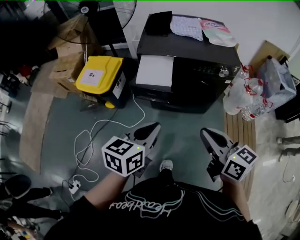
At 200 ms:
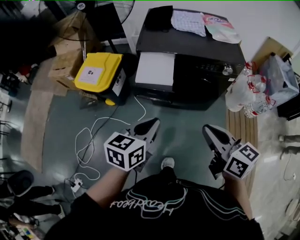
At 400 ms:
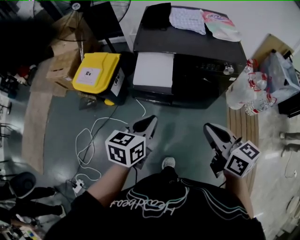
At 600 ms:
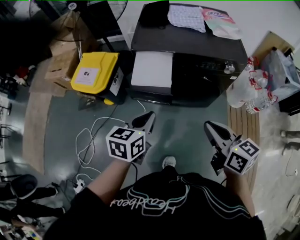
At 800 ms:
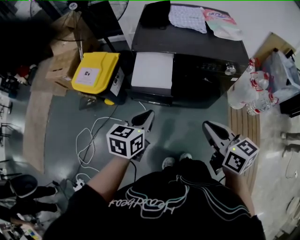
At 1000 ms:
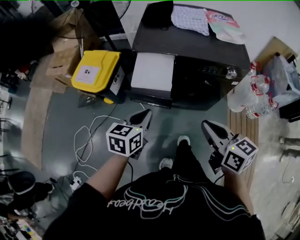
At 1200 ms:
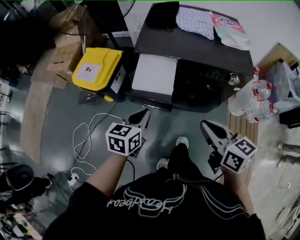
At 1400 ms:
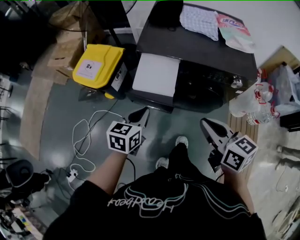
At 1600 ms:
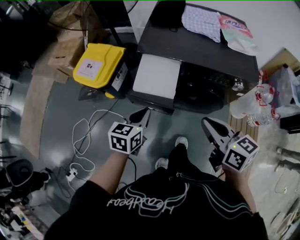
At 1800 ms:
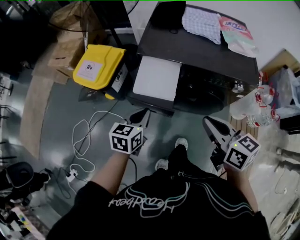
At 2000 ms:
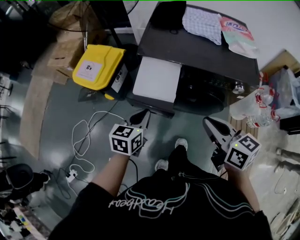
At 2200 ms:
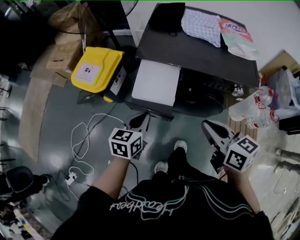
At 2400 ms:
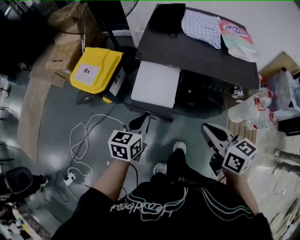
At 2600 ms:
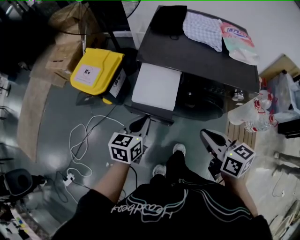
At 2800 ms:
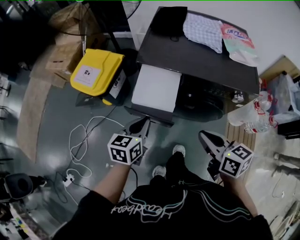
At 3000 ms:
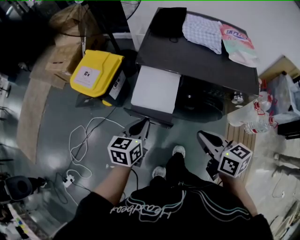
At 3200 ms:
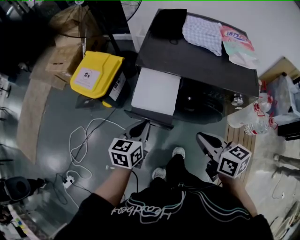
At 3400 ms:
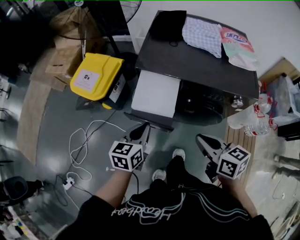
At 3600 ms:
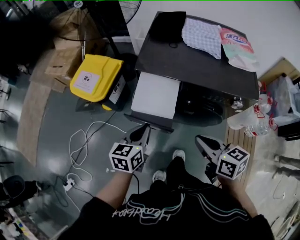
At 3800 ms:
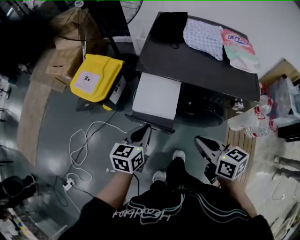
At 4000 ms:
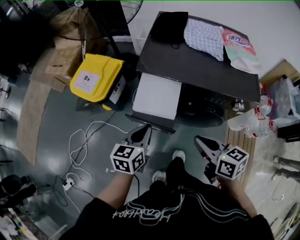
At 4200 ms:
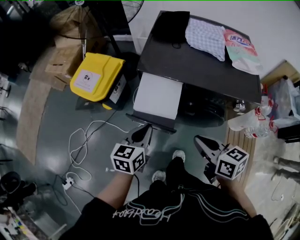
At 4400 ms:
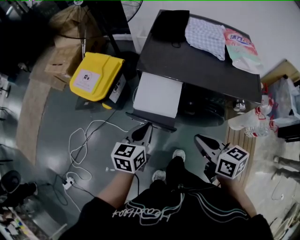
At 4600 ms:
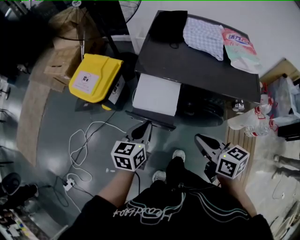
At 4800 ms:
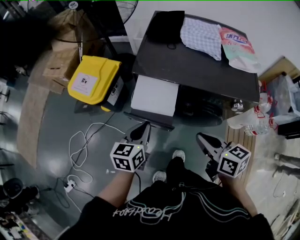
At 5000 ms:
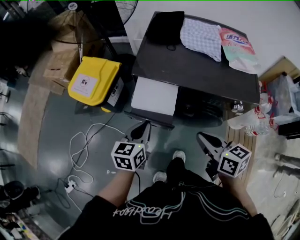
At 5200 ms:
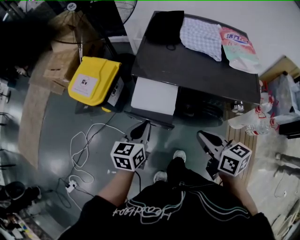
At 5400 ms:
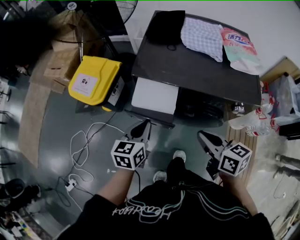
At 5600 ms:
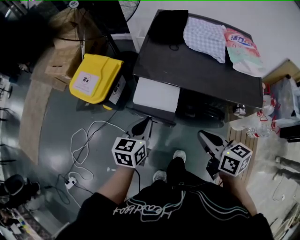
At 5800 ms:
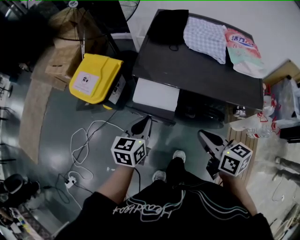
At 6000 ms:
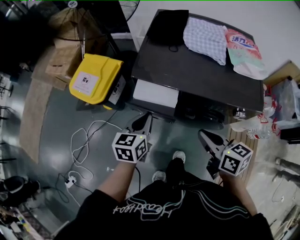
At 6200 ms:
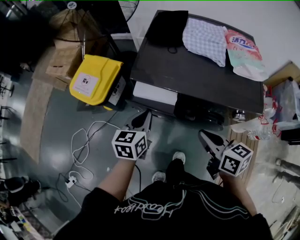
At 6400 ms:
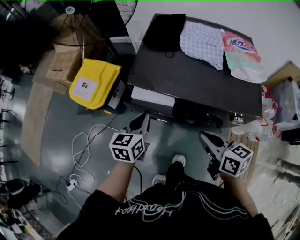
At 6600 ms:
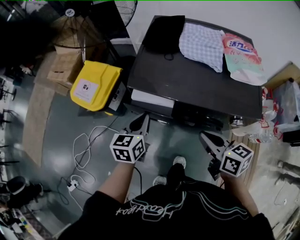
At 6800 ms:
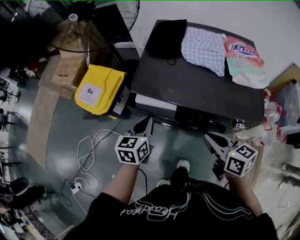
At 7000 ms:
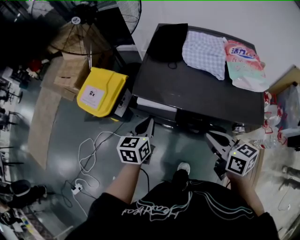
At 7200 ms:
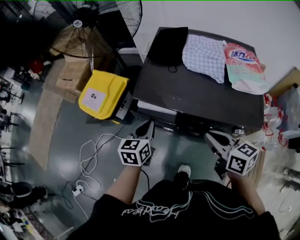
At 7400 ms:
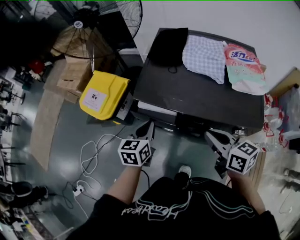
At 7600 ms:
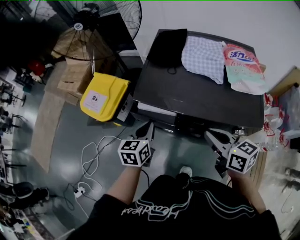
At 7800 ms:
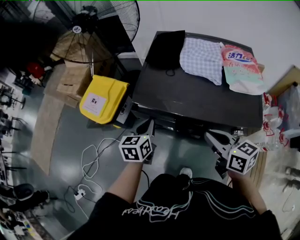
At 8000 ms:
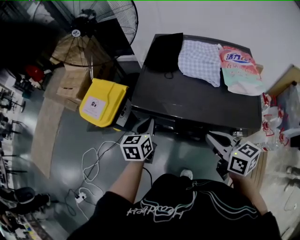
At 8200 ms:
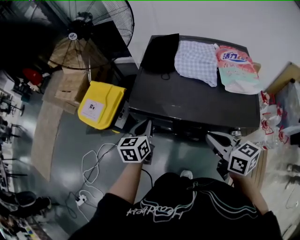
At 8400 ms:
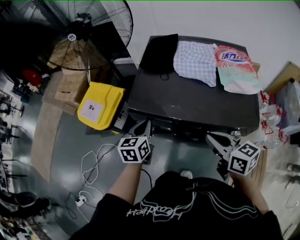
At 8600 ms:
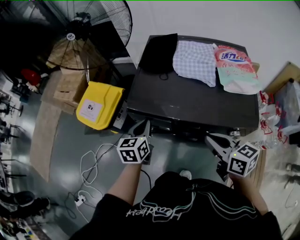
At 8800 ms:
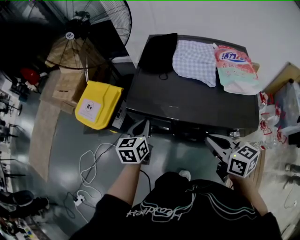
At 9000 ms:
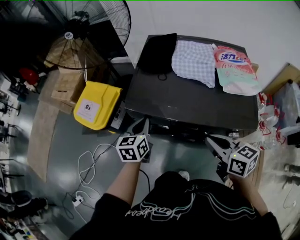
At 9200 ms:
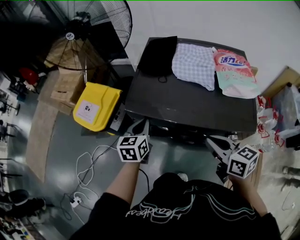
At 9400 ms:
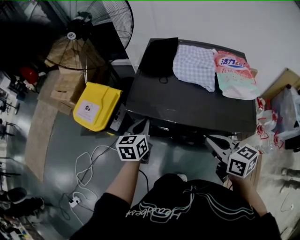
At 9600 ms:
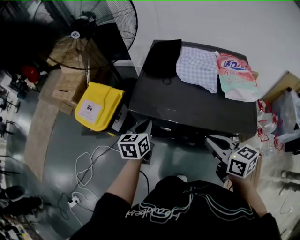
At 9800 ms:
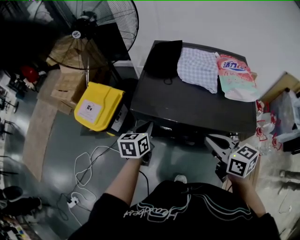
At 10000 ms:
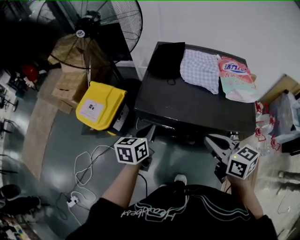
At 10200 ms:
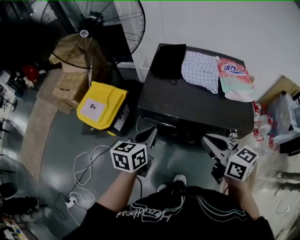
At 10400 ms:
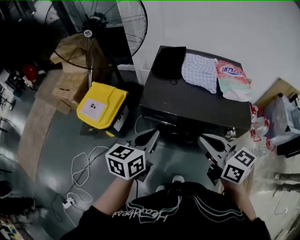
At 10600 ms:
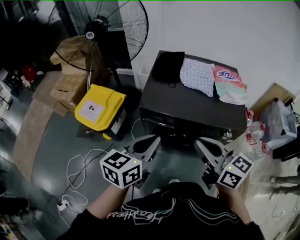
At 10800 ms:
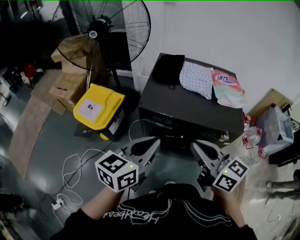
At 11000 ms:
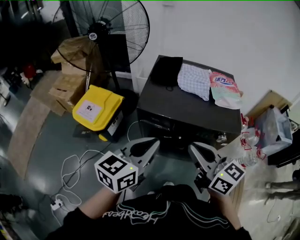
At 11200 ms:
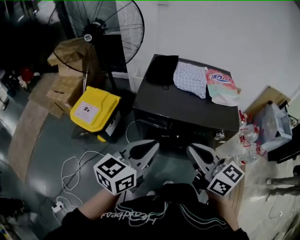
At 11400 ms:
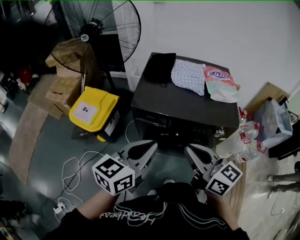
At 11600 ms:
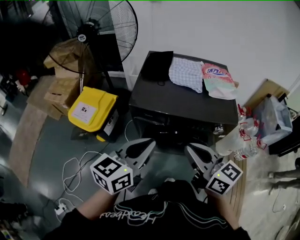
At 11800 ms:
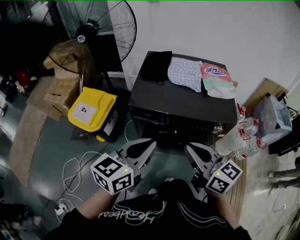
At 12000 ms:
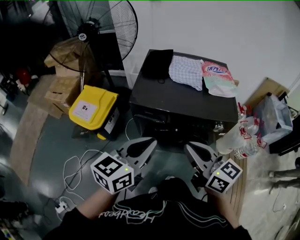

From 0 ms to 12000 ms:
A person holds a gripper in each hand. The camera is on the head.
From 0 ms to 1600 ms: The right gripper moves forward, about 15 cm, while the left gripper travels forward and downward by about 20 cm.
From 1600 ms to 3000 ms: The grippers stay close to where they were, moving slightly.
From 3000 ms to 4400 ms: The grippers make only small movements.
From 4400 ms to 6000 ms: Both grippers move forward, some 5 cm.
From 6000 ms to 7600 ms: The left gripper moves some 5 cm. The right gripper shifts roughly 10 cm forward and to the right.
From 7600 ms to 9000 ms: The left gripper moves approximately 5 cm.
From 9000 ms to 10400 ms: The right gripper shifts some 15 cm upward and to the left. Meanwhile the left gripper moves upward and backward, roughly 20 cm, and rotates about 20 degrees.
From 10400 ms to 12000 ms: The right gripper moves backward, approximately 5 cm; the left gripper travels backward and upward by about 10 cm.

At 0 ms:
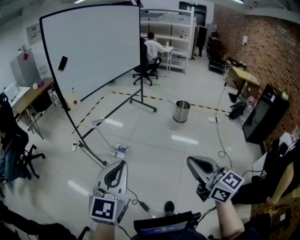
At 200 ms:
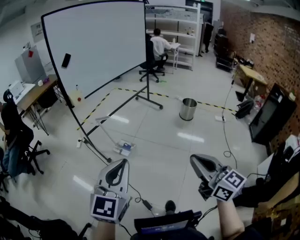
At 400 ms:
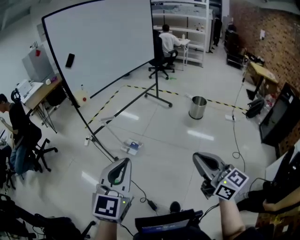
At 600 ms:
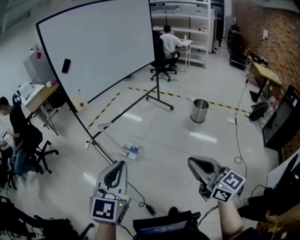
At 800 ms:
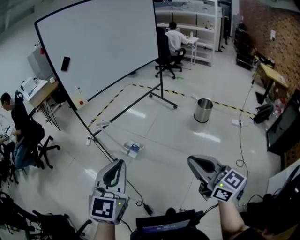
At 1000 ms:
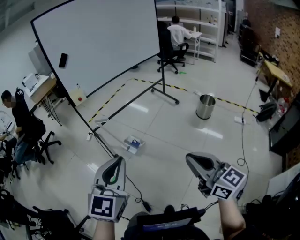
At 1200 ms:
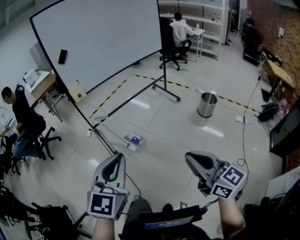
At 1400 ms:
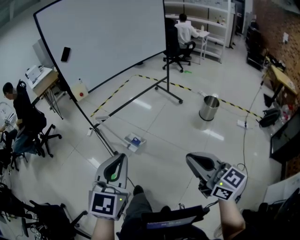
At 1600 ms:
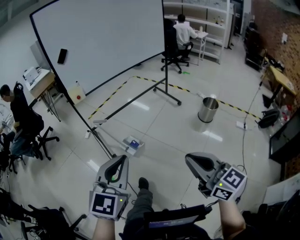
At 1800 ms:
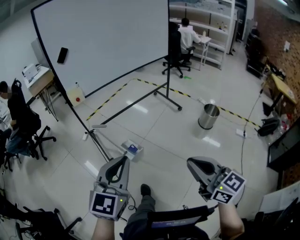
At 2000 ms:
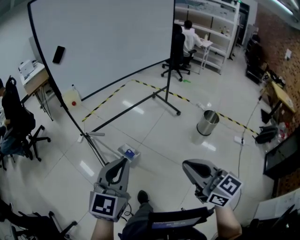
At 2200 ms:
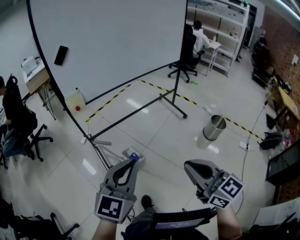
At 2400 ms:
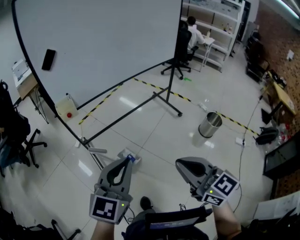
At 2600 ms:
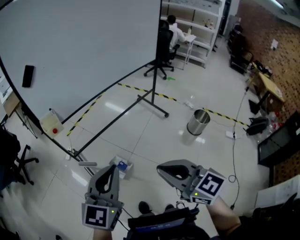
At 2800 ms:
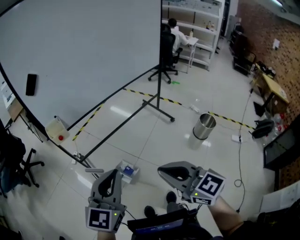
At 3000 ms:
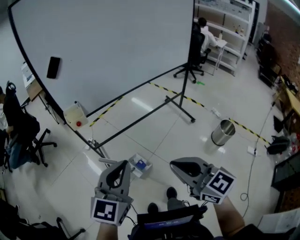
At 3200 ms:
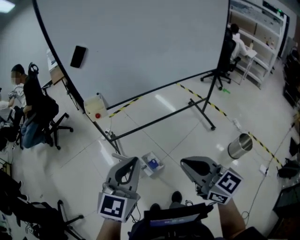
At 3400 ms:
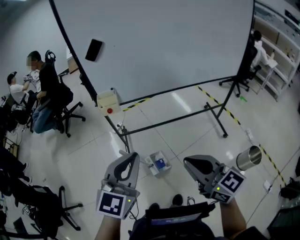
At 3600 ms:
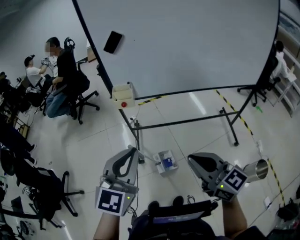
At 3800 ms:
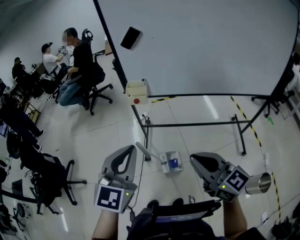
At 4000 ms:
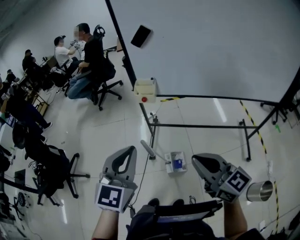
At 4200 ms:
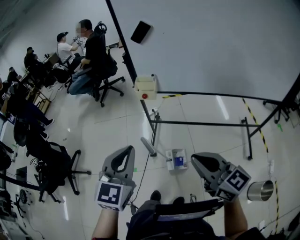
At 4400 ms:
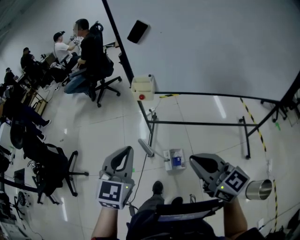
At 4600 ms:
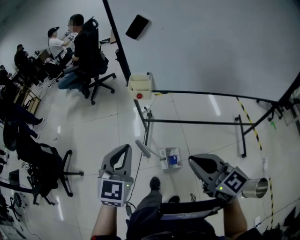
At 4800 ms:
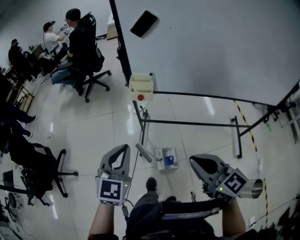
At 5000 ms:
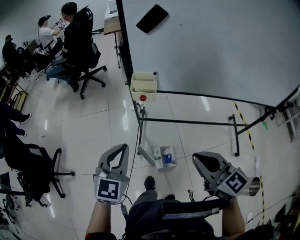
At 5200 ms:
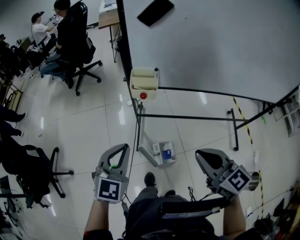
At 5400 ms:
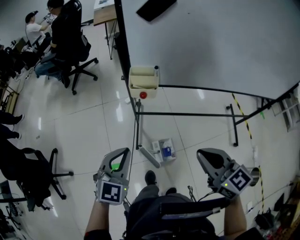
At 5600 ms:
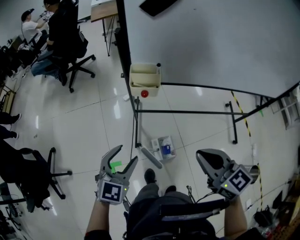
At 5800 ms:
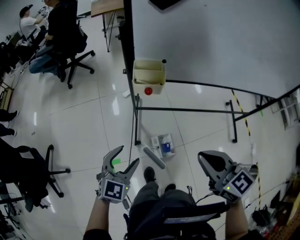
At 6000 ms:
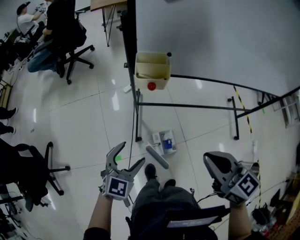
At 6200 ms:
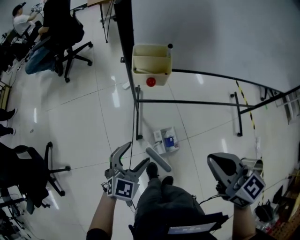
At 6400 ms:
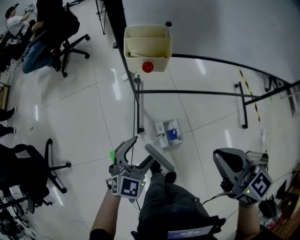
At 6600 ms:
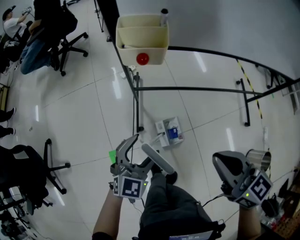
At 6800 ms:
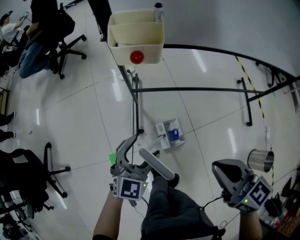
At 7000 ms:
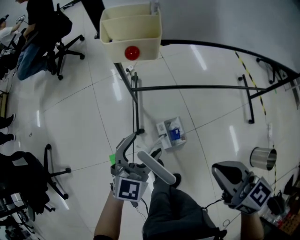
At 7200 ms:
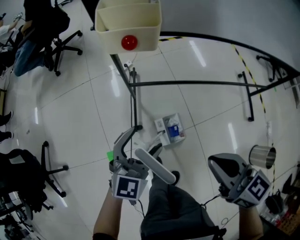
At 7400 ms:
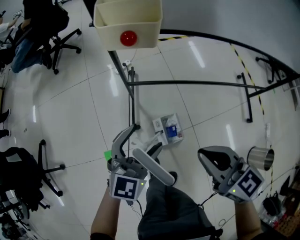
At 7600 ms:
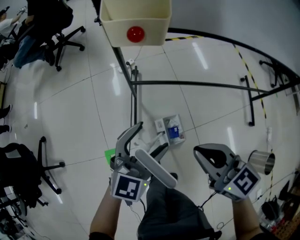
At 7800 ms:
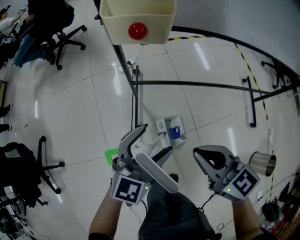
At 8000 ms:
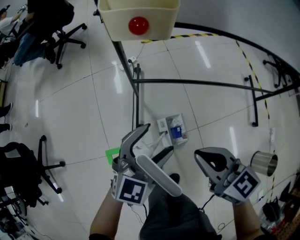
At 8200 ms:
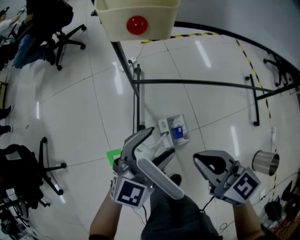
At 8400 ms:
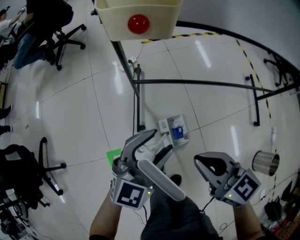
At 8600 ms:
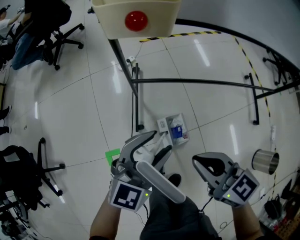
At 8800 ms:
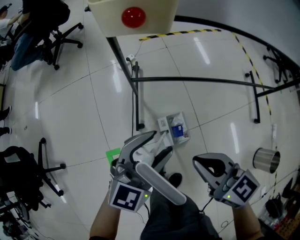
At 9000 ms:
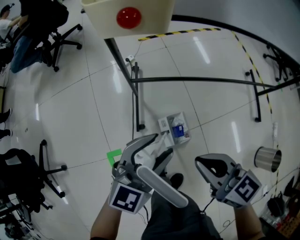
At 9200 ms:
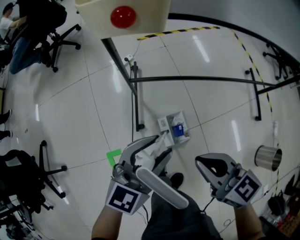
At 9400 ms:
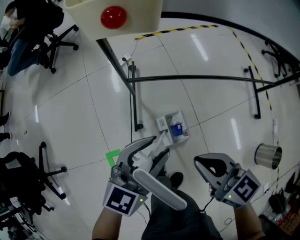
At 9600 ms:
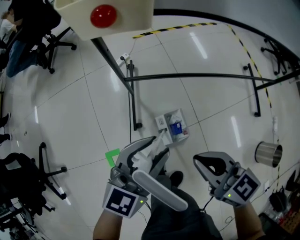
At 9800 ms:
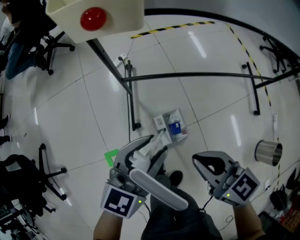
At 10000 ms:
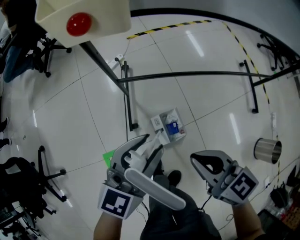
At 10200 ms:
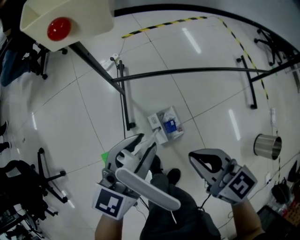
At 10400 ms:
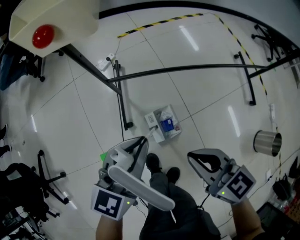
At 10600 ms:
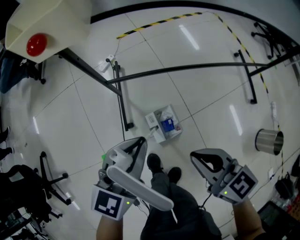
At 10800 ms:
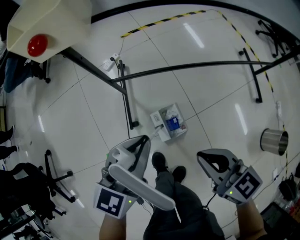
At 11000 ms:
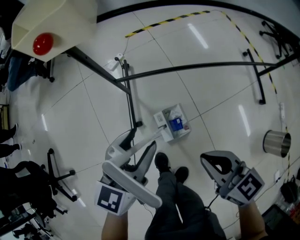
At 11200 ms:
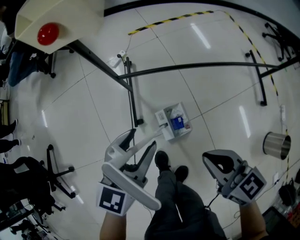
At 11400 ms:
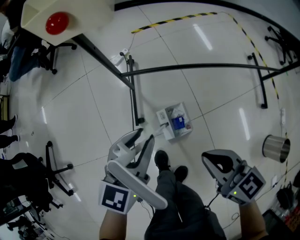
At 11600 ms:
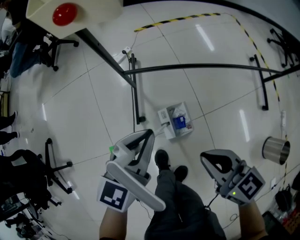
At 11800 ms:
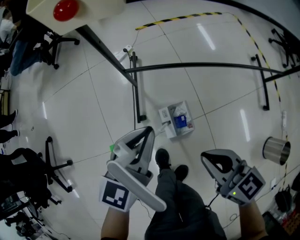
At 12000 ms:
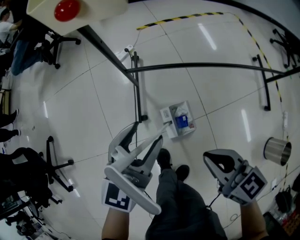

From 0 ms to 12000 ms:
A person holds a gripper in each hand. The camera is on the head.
From 0 ms to 1600 ms: Both grippers move forward and to the right, some 25 cm.
From 1600 ms to 3000 ms: Both grippers travel together forward, some 35 cm.
From 3000 ms to 4400 ms: The left gripper moves some 10 cm, and changes its angle by roughly 50 degrees, while the right gripper ends up roughly 15 cm from where it was, and turns by about 40 degrees.
From 4400 ms to 6000 ms: The right gripper travels forward, downward and to the left by some 15 cm, while the left gripper goes approximately 25 cm downward and forward, changes its angle by approximately 20 degrees, and opens.
From 6000 ms to 7600 ms: The left gripper travels to the right and downward by approximately 15 cm. The right gripper shifts some 20 cm downward.
From 7600 ms to 9000 ms: The left gripper closes up. The right gripper is displaced downward by approximately 5 cm.
From 9000 ms to 10400 ms: The right gripper is displaced to the right by about 5 cm, while the left gripper closes up.
From 10400 ms to 12000 ms: The left gripper opens.
